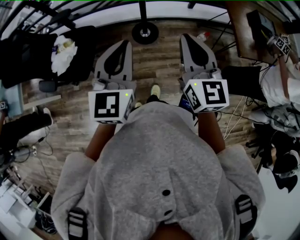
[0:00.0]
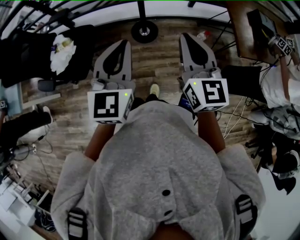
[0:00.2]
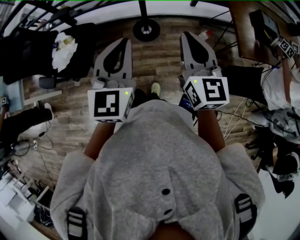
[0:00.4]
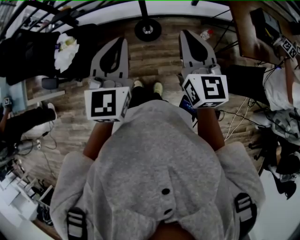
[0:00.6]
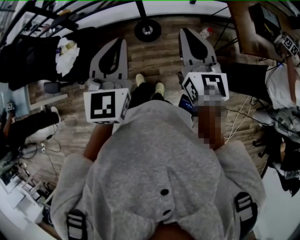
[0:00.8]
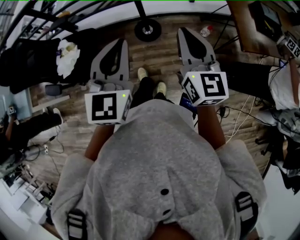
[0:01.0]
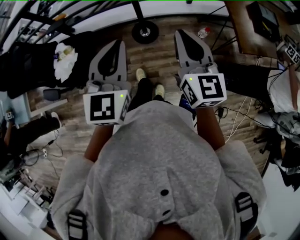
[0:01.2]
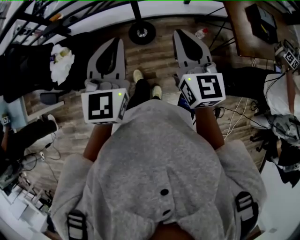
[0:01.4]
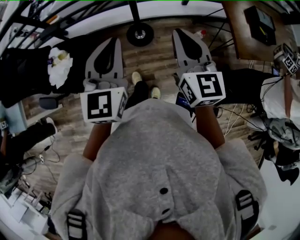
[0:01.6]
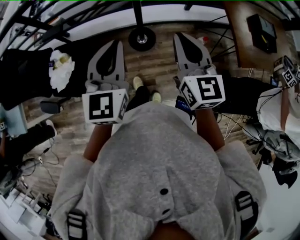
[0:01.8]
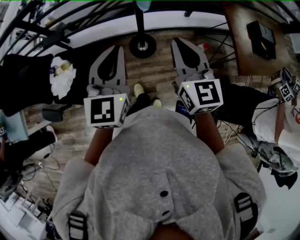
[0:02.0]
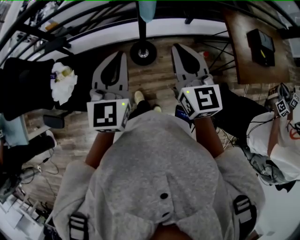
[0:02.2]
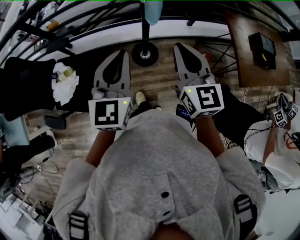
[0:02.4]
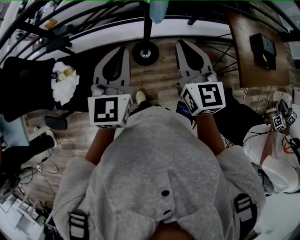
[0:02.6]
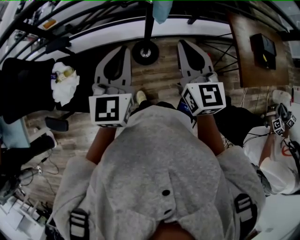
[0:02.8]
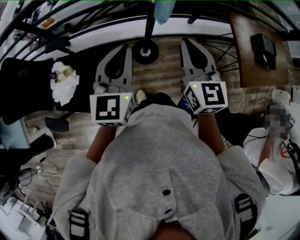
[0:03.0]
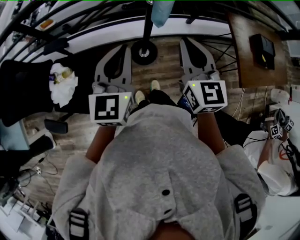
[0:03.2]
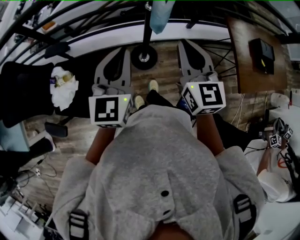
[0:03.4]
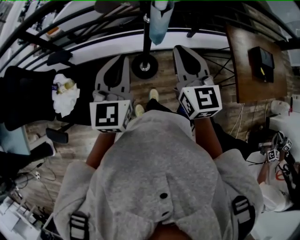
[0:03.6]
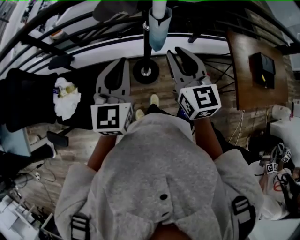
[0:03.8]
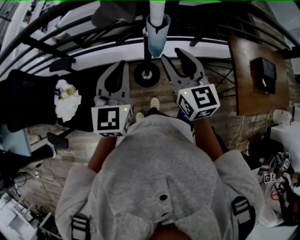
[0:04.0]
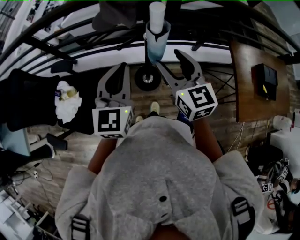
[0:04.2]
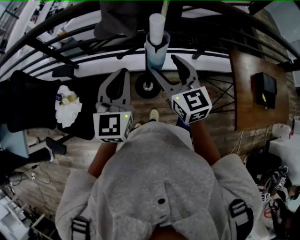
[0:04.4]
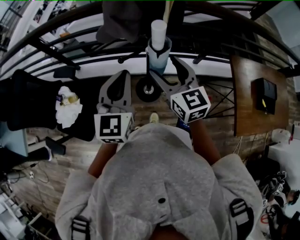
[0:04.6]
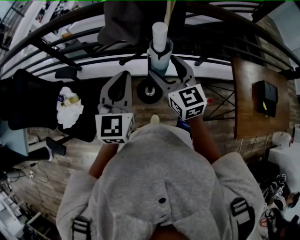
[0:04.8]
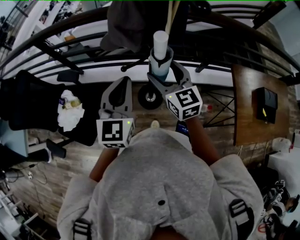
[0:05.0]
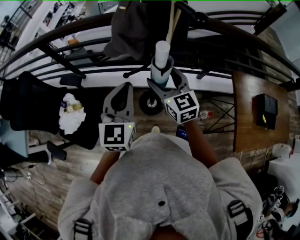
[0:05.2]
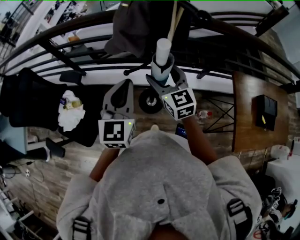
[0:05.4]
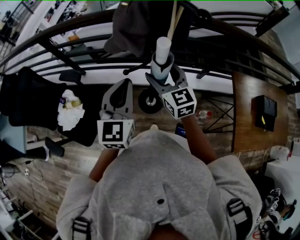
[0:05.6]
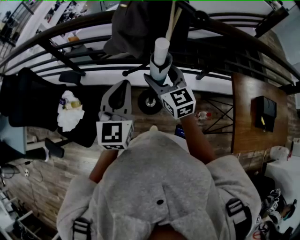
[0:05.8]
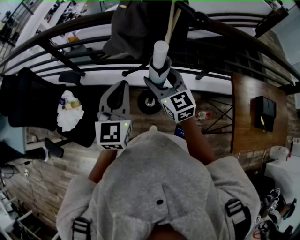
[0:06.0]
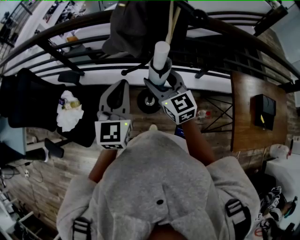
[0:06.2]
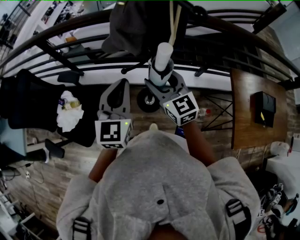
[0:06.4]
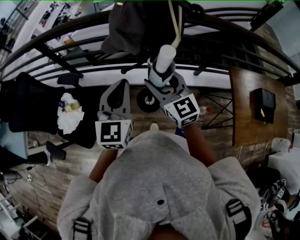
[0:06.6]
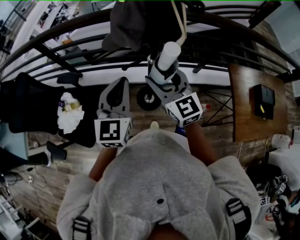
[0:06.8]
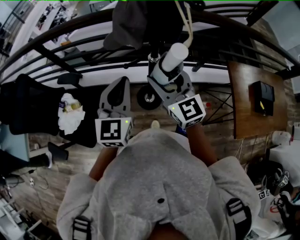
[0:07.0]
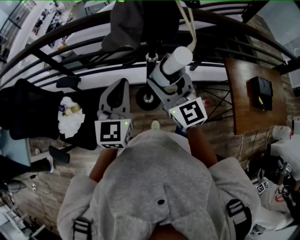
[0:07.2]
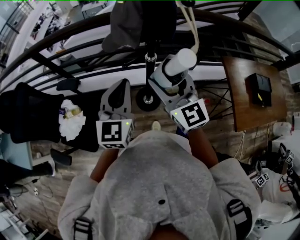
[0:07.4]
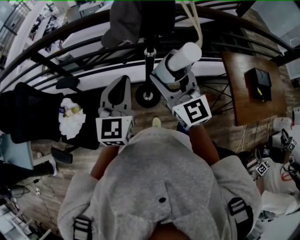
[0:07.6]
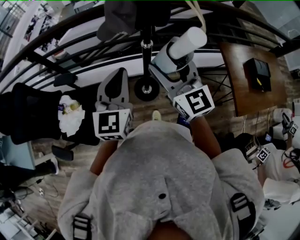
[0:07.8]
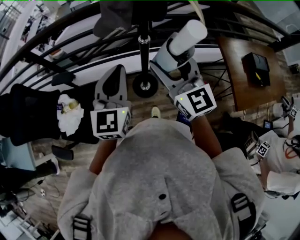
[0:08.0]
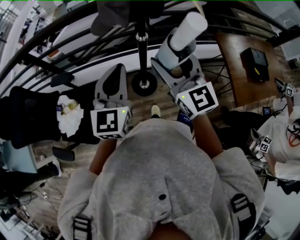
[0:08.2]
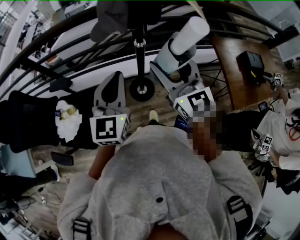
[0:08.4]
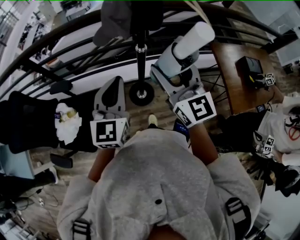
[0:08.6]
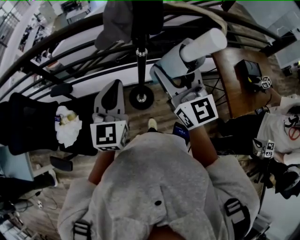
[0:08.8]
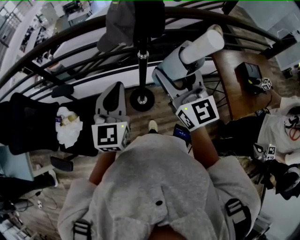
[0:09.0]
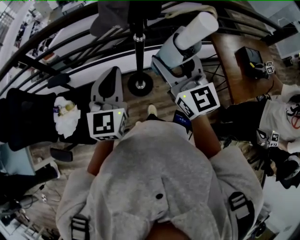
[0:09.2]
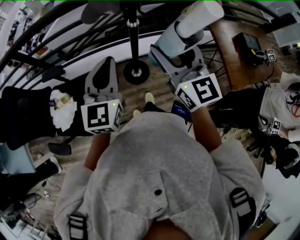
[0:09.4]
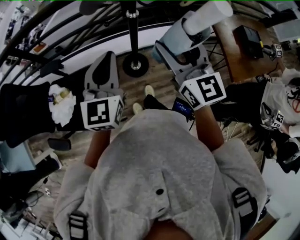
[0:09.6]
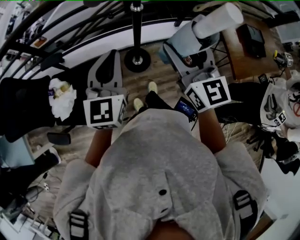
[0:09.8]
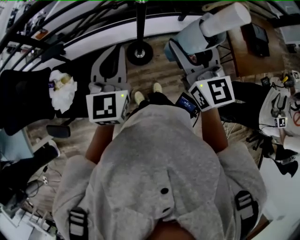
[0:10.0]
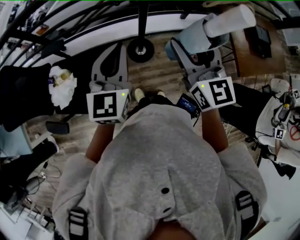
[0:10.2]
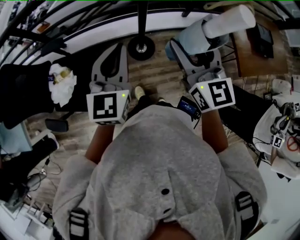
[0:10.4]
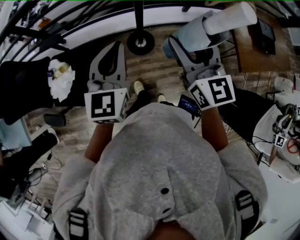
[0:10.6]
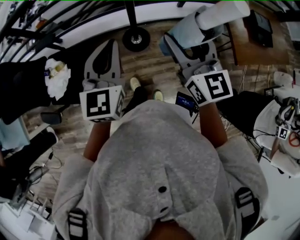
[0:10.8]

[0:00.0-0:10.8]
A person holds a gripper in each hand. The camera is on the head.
0:00.0 to 0:01.6: Both grippers move forward, about 10 cm.
0:01.6 to 0:03.0: The grippers both shift forward and to the left by some 20 cm.
0:03.0 to 0:04.6: The left gripper is displaced forward and to the right by about 15 cm; the right gripper goes about 15 cm forward, swivels approximately 20 degrees, and opens.
0:04.6 to 0:06.2: The right gripper ends up some 5 cm from where it was.
0:06.2 to 0:07.8: The left gripper moves backward, approximately 5 cm, while the right gripper shifts some 15 cm upward and backward.
0:07.8 to 0:09.2: The grippers make only small movements.
0:09.2 to 0:10.8: The two grippers go roughly 15 cm backward, to the right and downward.

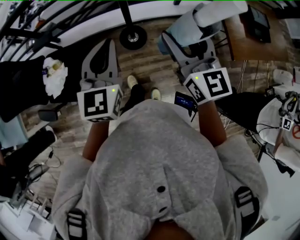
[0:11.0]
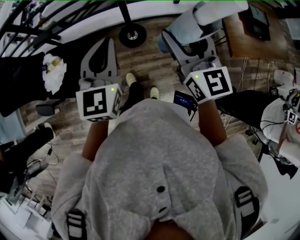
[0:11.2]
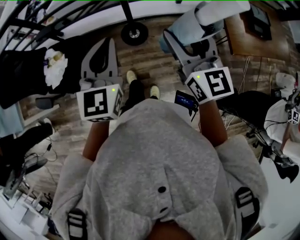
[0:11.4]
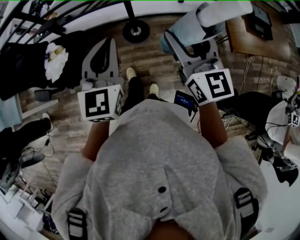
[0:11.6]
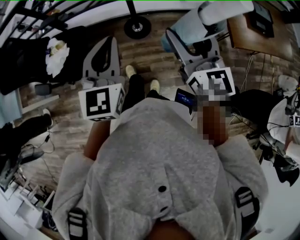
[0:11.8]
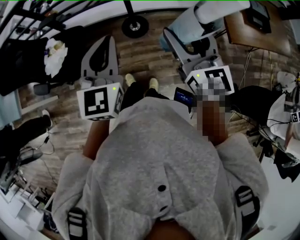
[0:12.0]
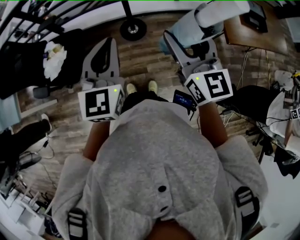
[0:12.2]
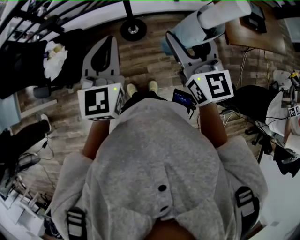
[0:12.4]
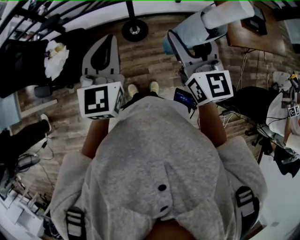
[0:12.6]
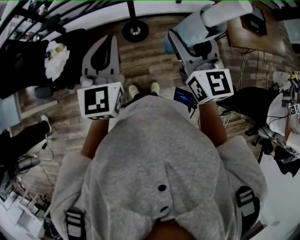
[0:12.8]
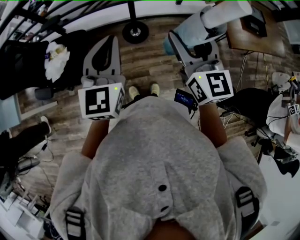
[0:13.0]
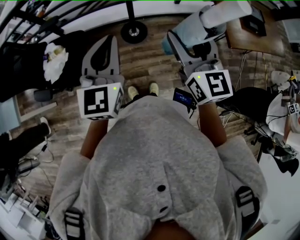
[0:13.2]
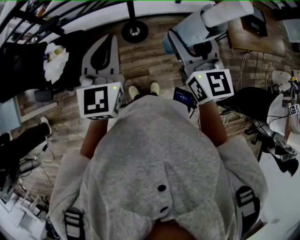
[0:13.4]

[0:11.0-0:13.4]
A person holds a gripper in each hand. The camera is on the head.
0:11.0 to 0:12.2: Both grippers move backward, about 15 cm.
0:12.2 to 0:13.4: The right gripper moves about 5 cm. Meanwhile the left gripper goes approximately 5 cm to the left.

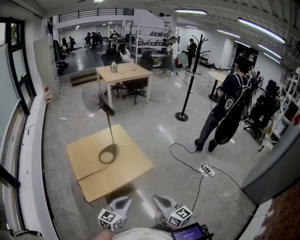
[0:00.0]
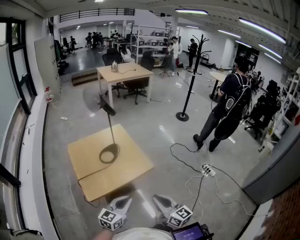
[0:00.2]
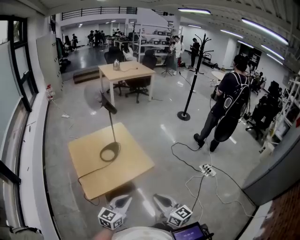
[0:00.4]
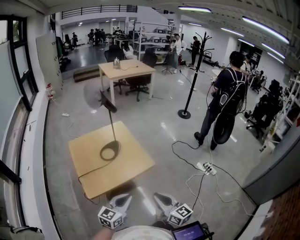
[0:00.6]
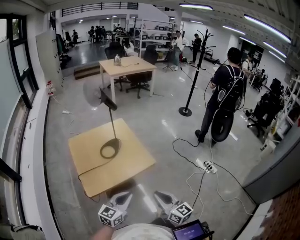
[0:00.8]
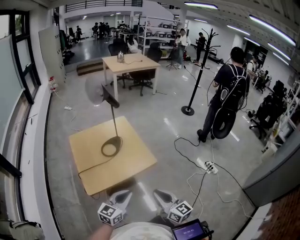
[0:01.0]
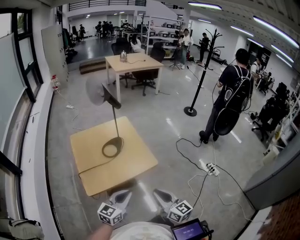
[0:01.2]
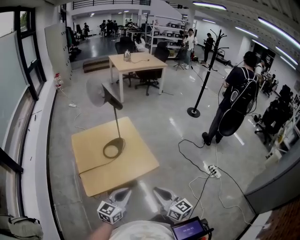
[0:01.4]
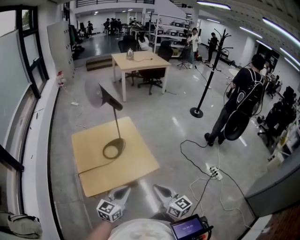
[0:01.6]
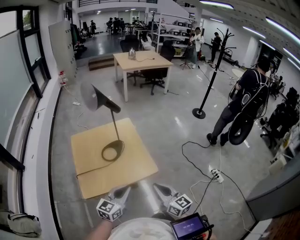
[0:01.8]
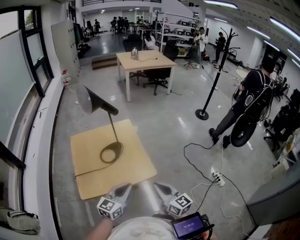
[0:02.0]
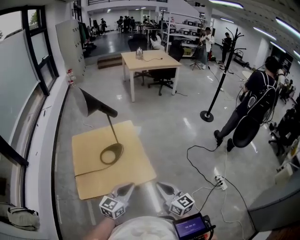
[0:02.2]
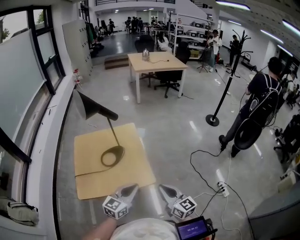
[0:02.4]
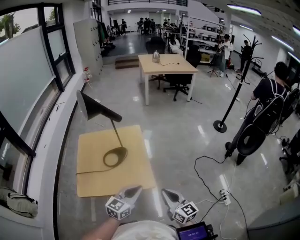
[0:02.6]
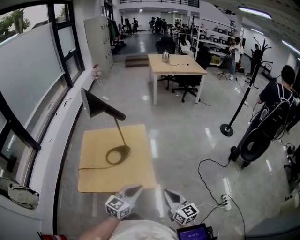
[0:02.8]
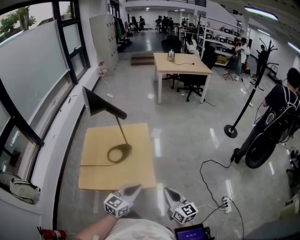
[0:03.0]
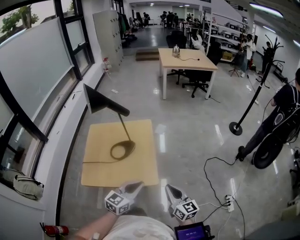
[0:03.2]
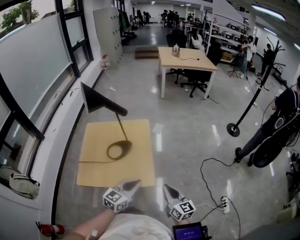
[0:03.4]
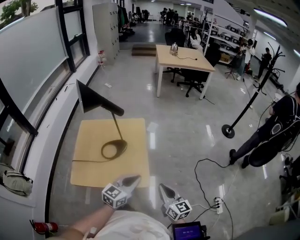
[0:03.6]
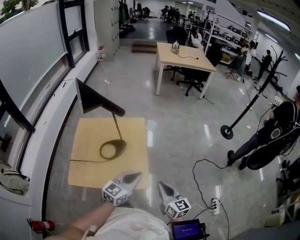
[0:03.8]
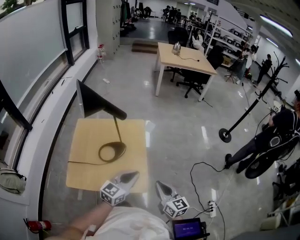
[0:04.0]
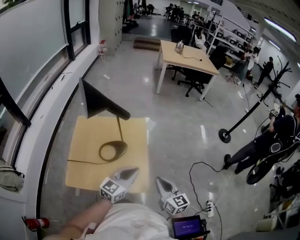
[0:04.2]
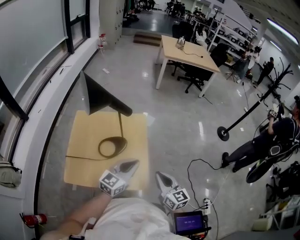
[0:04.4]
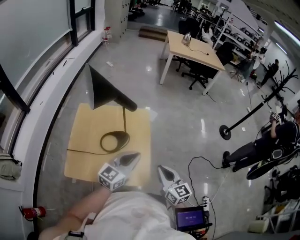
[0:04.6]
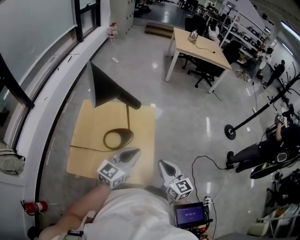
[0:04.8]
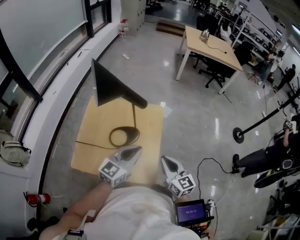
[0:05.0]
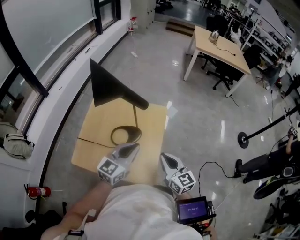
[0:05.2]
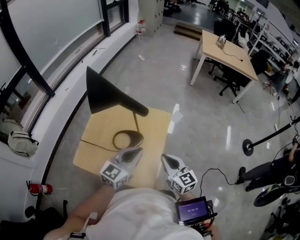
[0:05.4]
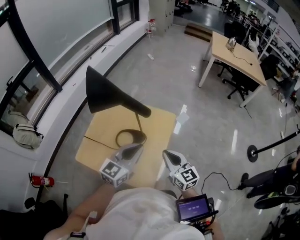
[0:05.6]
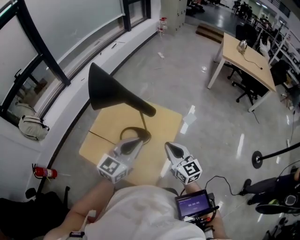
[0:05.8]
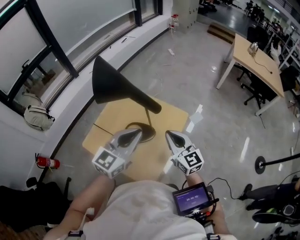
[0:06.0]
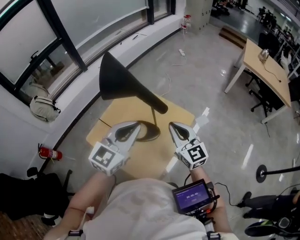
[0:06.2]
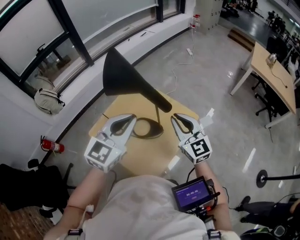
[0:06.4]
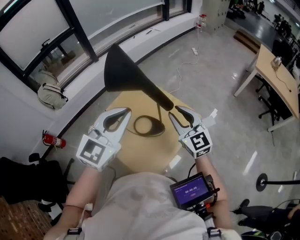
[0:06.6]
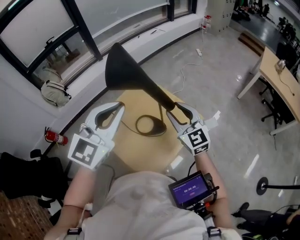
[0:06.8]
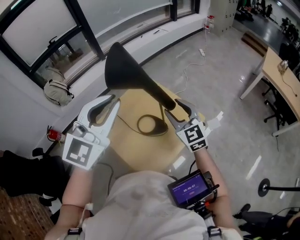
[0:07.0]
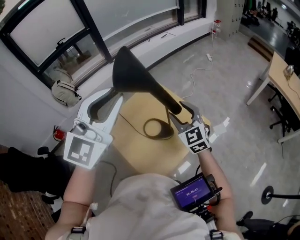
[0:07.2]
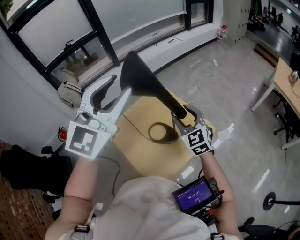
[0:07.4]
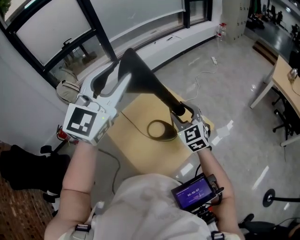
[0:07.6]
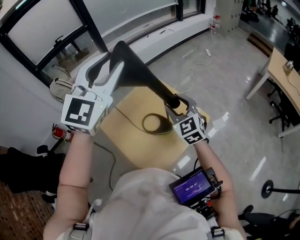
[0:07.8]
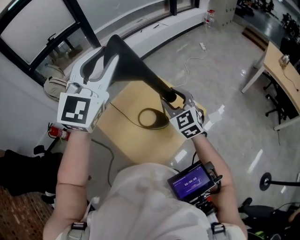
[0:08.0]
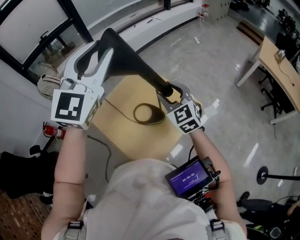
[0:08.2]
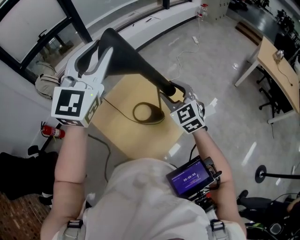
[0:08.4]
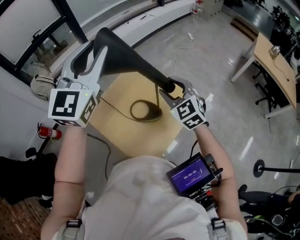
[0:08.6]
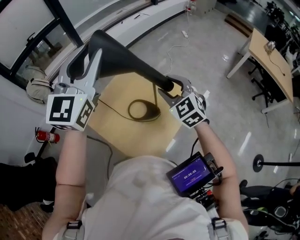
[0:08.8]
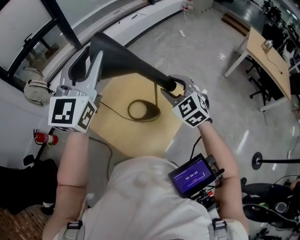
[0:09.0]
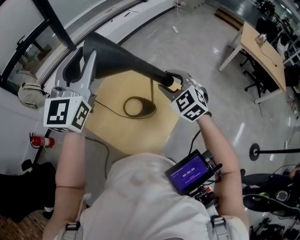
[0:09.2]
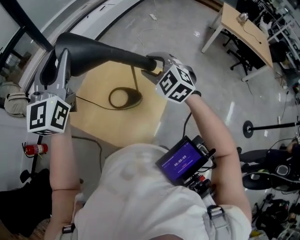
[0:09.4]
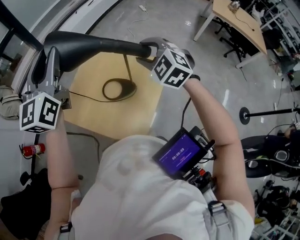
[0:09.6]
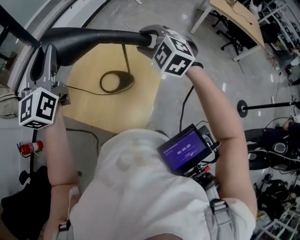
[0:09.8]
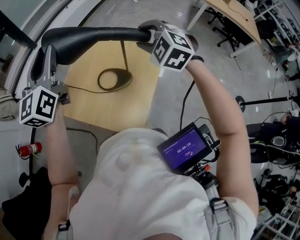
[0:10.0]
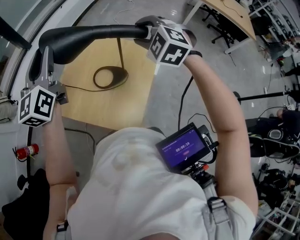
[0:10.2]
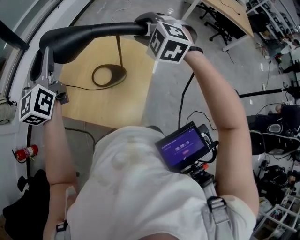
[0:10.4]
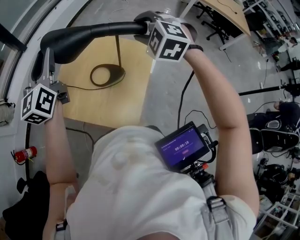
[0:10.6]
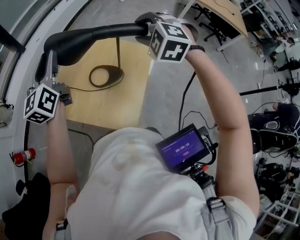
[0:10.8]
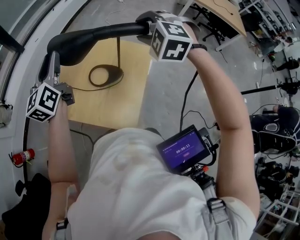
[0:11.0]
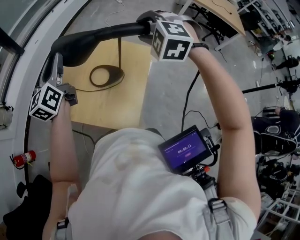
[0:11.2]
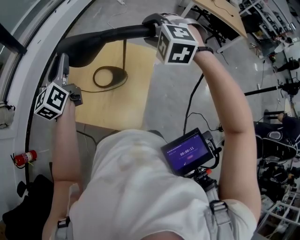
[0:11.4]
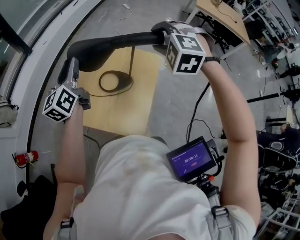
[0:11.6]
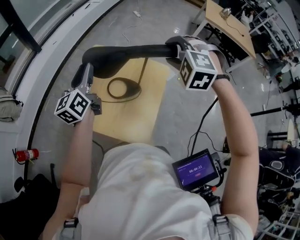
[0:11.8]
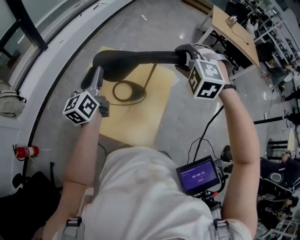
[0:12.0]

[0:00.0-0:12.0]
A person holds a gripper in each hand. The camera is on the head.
0:00.0 to 0:01.6: Both grippers travel together forward, approximately 10 cm.
0:01.6 to 0:03.0: The grippers both shift to the right and forward by roughly 20 cm.
0:03.0 to 0:04.4: The grippers both shift forward by approximately 15 cm.
0:04.4 to 0:06.0: The left gripper ends up roughly 15 cm from where it was, and turns by about 30 degrees. The right gripper ends up roughly 25 cm from where it was, and changes its angle by about 40 degrees.
0:06.0 to 0:07.6: The right gripper shifts roughly 10 cm forward and to the left, rotates roughly 30 degrees, and opens its fingers; the left gripper is displaced upward by approximately 25 cm, changes its angle by approximately 40 degrees, and opens its fingers.
0:07.6 to 0:09.0: The left gripper heads to the left, covering roughly 5 cm.
0:09.0 to 0:10.4: The right gripper changes its angle by approximately 30 degrees. The left gripper is displaced downward and to the left by approximately 15 cm, and swivels some 30 degrees.
0:10.4 to 0:12.0: The left gripper is displaced downward by about 10 cm, and rotates approximately 20 degrees, while the right gripper ends up some 5 cm from where it was.
